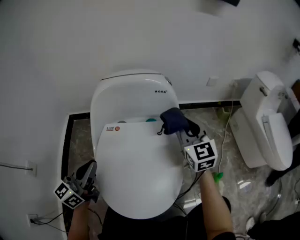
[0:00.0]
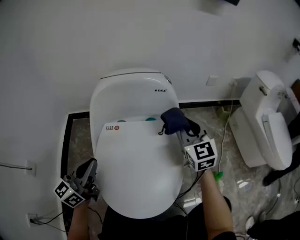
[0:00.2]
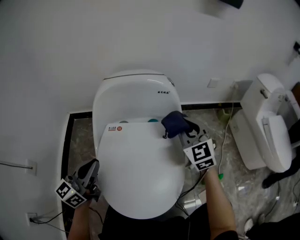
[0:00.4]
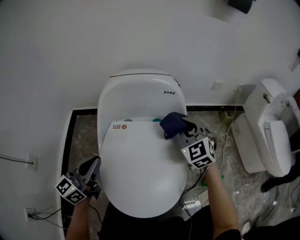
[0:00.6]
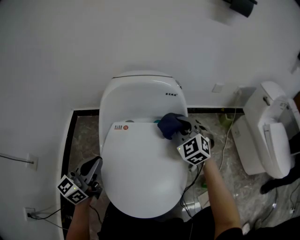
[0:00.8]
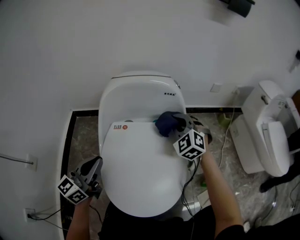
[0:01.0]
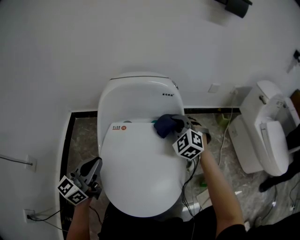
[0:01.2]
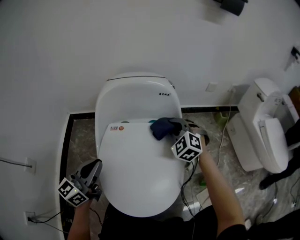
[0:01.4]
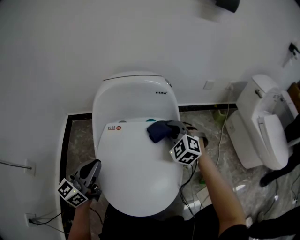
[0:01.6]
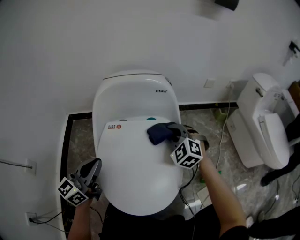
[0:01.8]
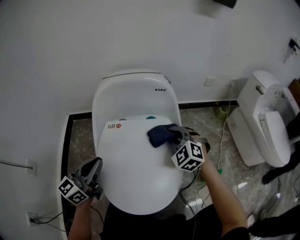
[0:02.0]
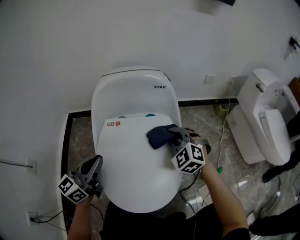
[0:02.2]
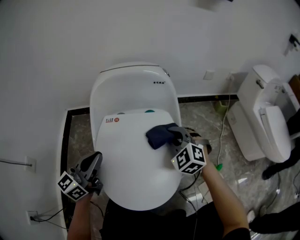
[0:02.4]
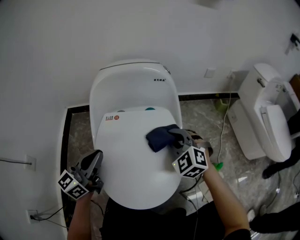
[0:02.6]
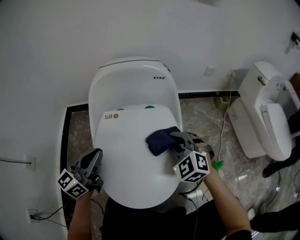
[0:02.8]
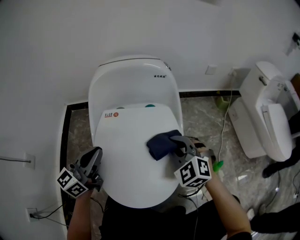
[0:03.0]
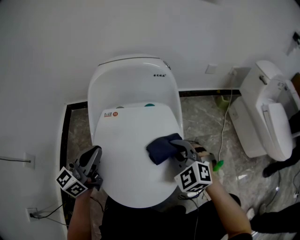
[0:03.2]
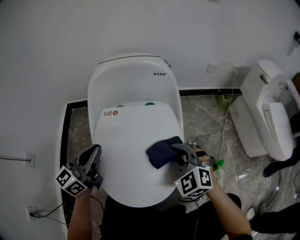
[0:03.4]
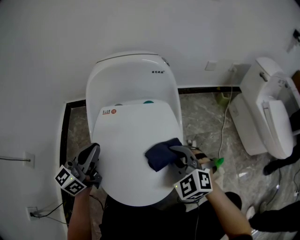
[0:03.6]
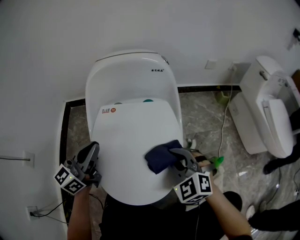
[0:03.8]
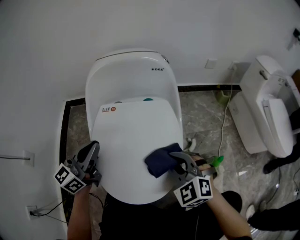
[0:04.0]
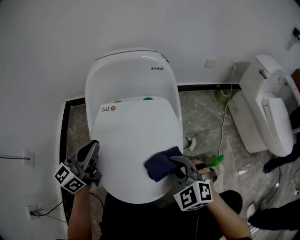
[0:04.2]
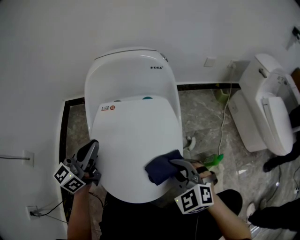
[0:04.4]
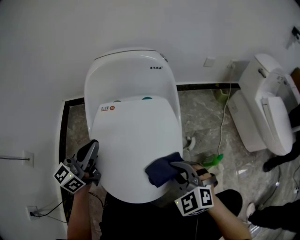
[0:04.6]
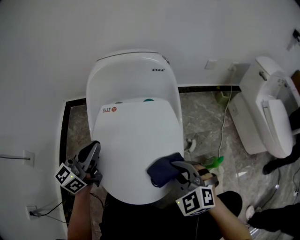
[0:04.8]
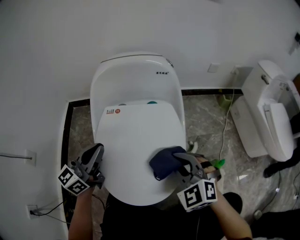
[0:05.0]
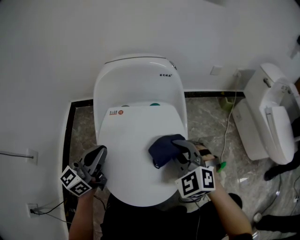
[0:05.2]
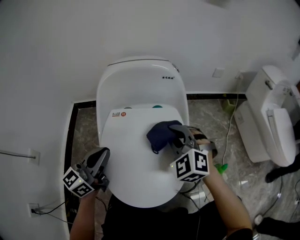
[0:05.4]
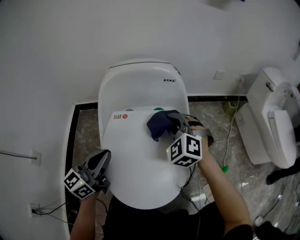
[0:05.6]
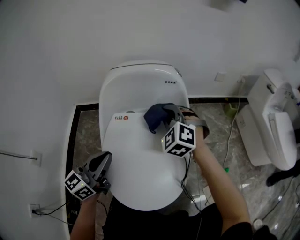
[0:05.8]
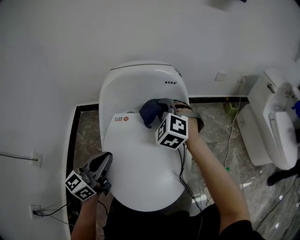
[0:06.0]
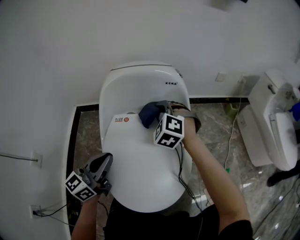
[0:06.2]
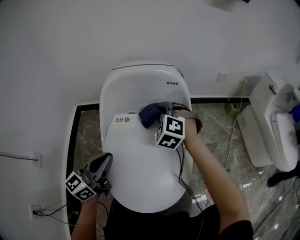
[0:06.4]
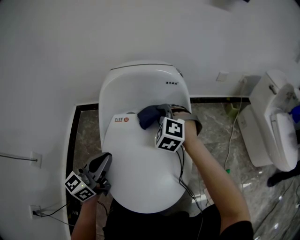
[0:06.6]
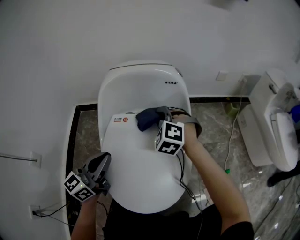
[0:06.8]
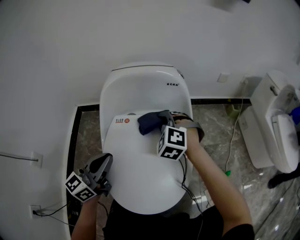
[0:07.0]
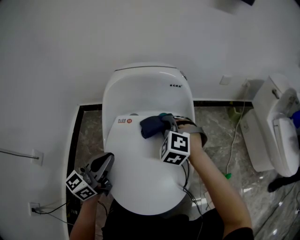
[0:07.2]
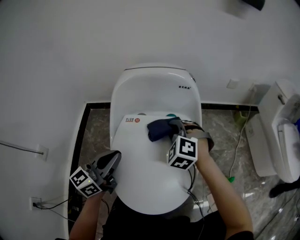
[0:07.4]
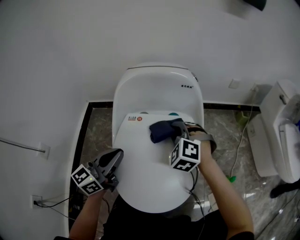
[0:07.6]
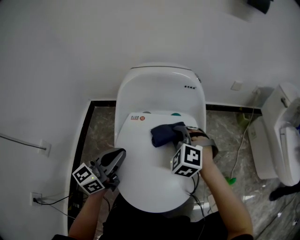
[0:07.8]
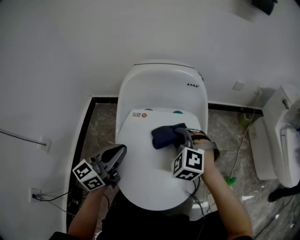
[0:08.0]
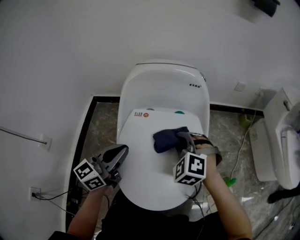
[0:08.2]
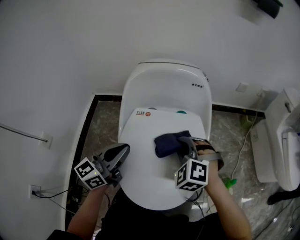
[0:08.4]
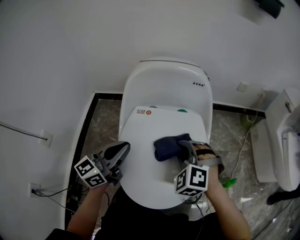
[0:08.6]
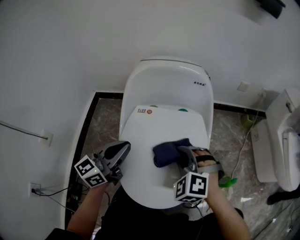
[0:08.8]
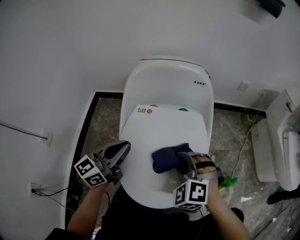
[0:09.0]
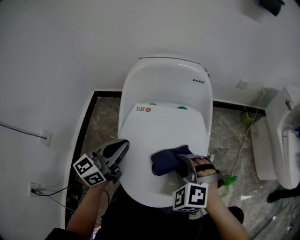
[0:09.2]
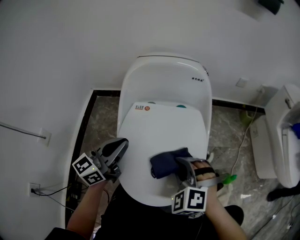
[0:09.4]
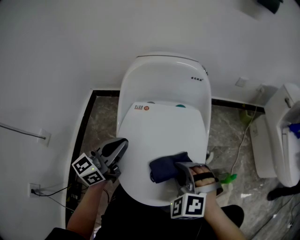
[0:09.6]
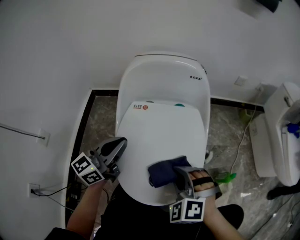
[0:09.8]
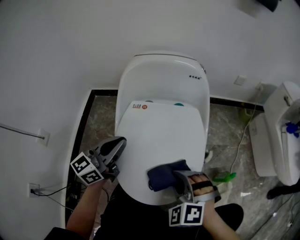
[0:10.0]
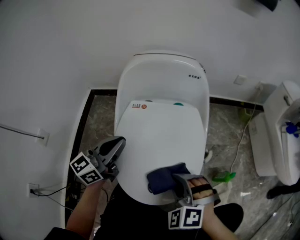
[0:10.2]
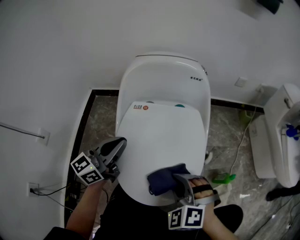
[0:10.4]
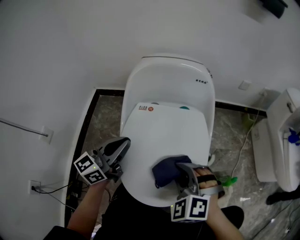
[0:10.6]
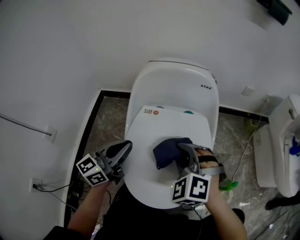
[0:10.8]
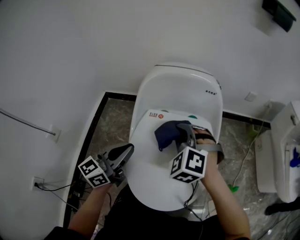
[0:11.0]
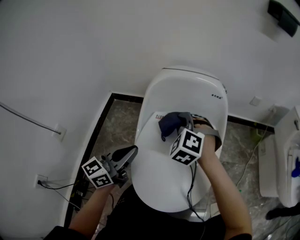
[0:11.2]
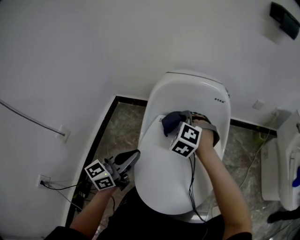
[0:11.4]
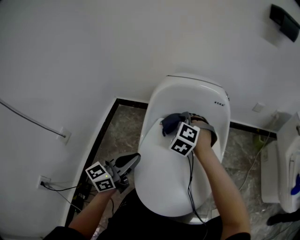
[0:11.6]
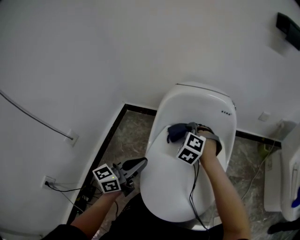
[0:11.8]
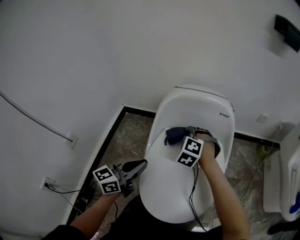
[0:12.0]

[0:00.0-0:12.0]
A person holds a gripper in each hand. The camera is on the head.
0:00.0 to 0:01.6: The right gripper travels downward by some 10 cm, and turns by roughly 50 degrees.
0:01.6 to 0:03.0: The right gripper travels backward by roughly 10 cm.
0:03.0 to 0:04.4: The right gripper shifts approximately 10 cm backward.
0:04.4 to 0:06.0: The right gripper is displaced forward by about 25 cm.
0:06.0 to 0:07.6: The right gripper goes roughly 5 cm backward.
0:07.6 to 0:09.0: The right gripper moves backward, about 15 cm.
0:09.0 to 0:10.4: The right gripper is displaced backward by about 10 cm.
0:10.4 to 0:12.0: The right gripper heads forward and to the left, covering some 30 cm.

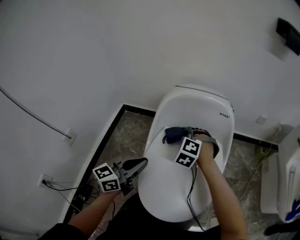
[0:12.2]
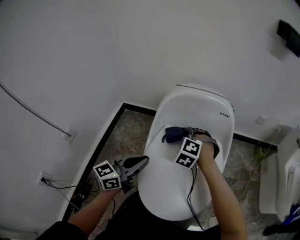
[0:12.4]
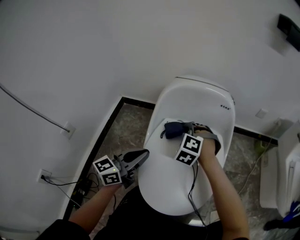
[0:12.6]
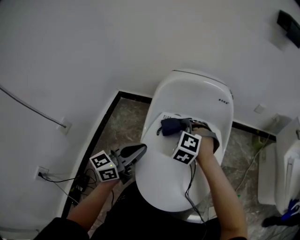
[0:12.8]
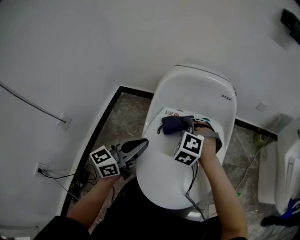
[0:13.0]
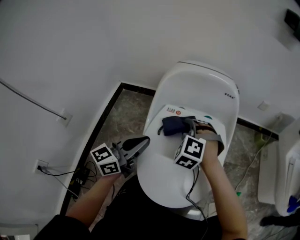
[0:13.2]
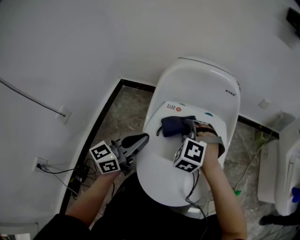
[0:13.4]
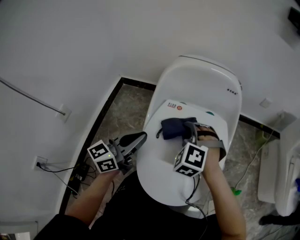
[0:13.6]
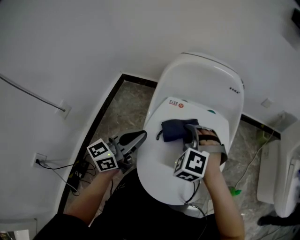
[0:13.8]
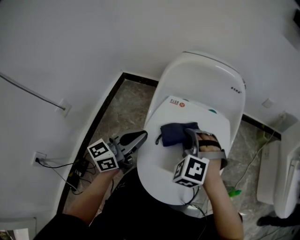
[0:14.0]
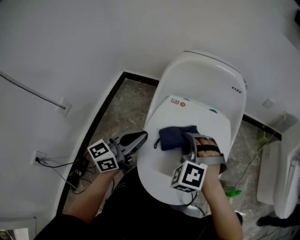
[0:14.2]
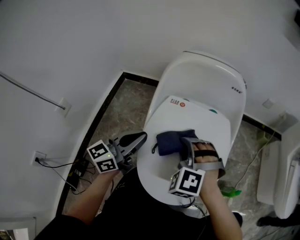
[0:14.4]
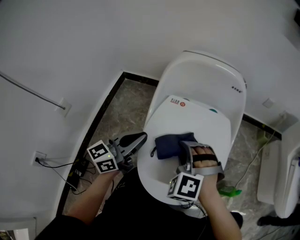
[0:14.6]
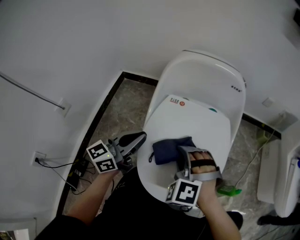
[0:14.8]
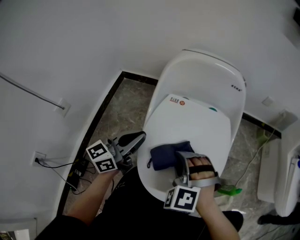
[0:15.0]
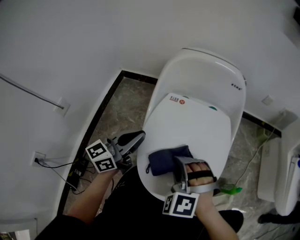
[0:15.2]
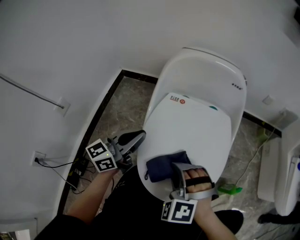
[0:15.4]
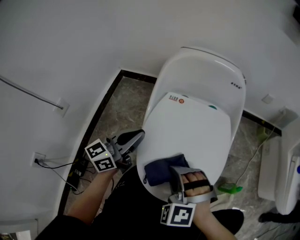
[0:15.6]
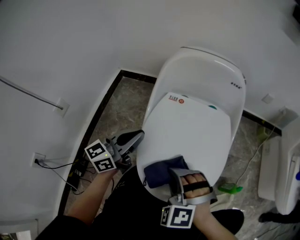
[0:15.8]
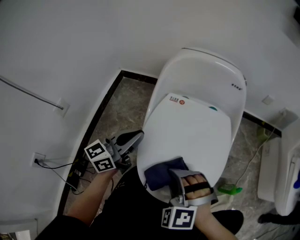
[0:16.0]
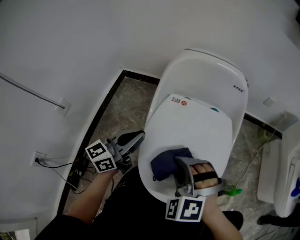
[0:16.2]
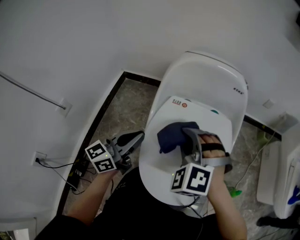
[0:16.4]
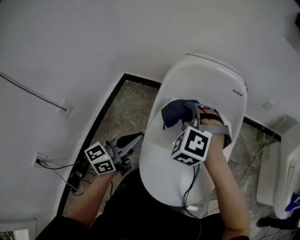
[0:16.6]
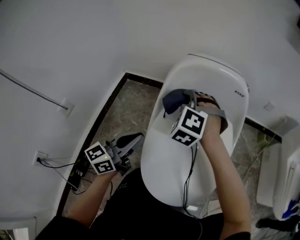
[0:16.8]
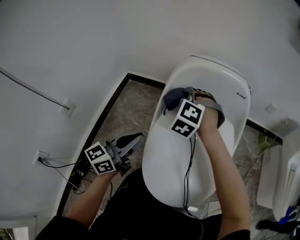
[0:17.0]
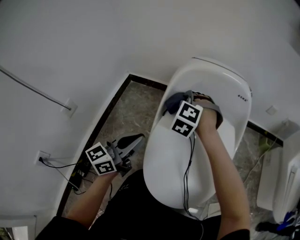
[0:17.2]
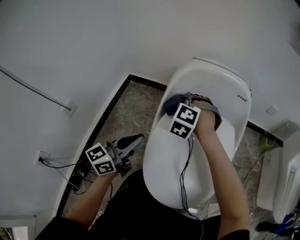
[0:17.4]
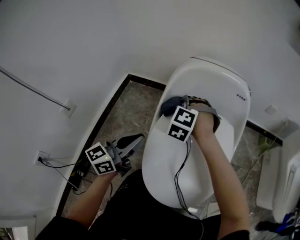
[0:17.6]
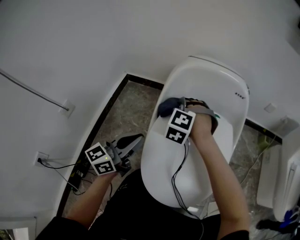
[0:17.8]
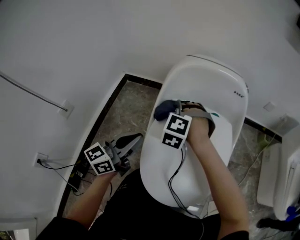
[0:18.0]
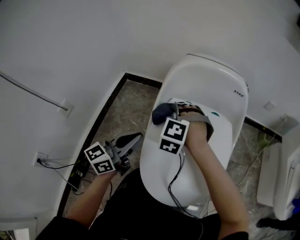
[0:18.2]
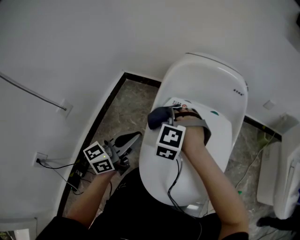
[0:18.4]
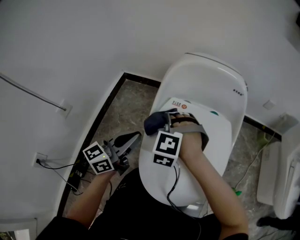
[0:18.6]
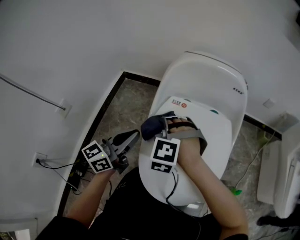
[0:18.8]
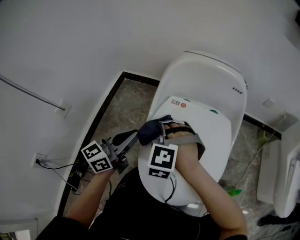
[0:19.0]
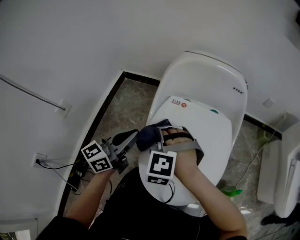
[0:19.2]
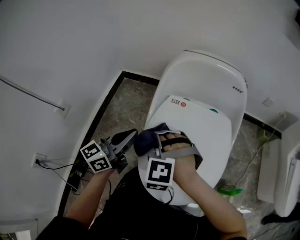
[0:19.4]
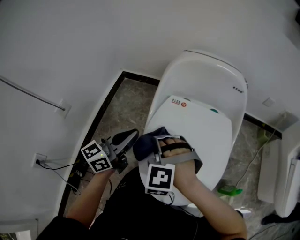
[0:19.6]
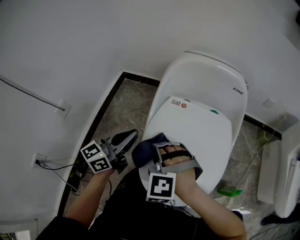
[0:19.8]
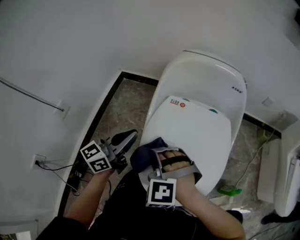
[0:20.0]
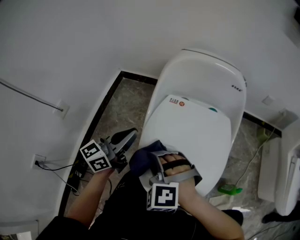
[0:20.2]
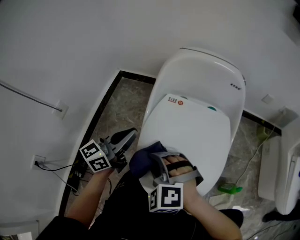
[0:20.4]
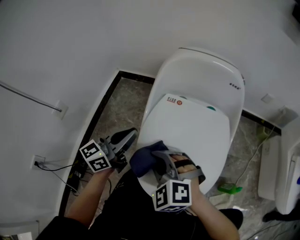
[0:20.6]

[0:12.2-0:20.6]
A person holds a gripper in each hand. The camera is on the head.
0:12.2 to 0:13.6: The right gripper shifts approximately 10 cm backward.
0:13.6 to 0:15.0: The right gripper travels backward by approximately 10 cm.
0:15.0 to 0:16.4: The right gripper heads forward and upward, covering some 10 cm.
0:16.4 to 0:17.8: The right gripper shifts some 15 cm forward, downward and to the left.
0:17.8 to 0:19.2: The right gripper heads backward, covering roughly 15 cm.
0:19.2 to 0:20.6: The right gripper heads backward, covering some 10 cm, and changes its angle by about 30 degrees.

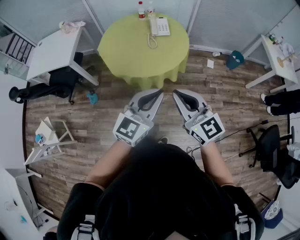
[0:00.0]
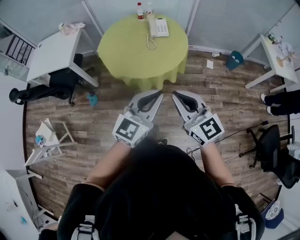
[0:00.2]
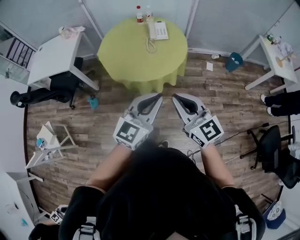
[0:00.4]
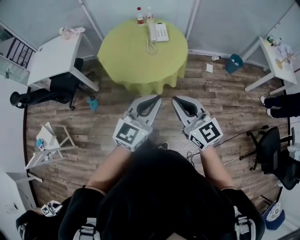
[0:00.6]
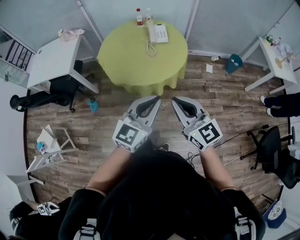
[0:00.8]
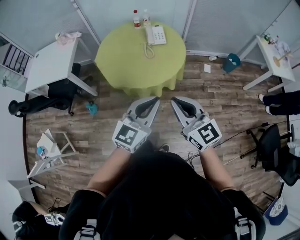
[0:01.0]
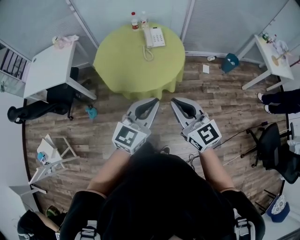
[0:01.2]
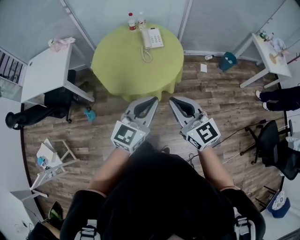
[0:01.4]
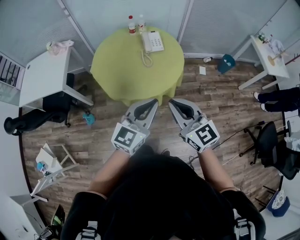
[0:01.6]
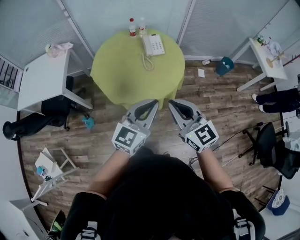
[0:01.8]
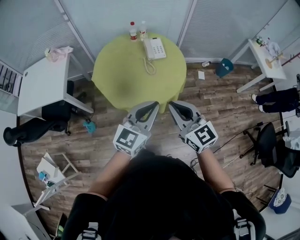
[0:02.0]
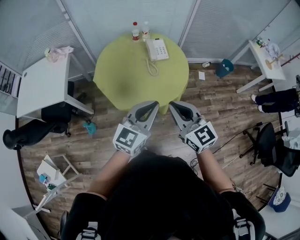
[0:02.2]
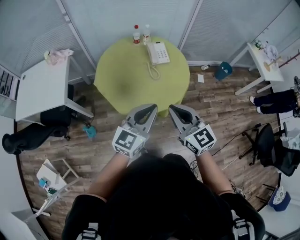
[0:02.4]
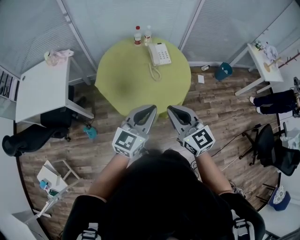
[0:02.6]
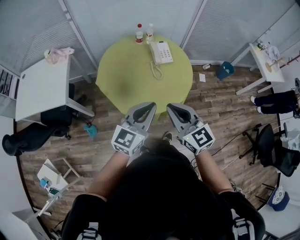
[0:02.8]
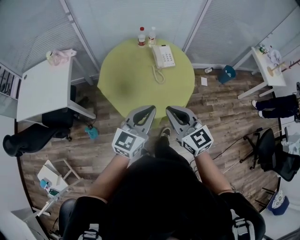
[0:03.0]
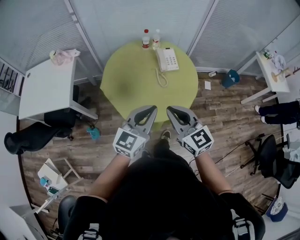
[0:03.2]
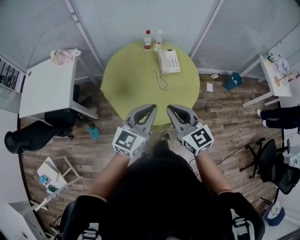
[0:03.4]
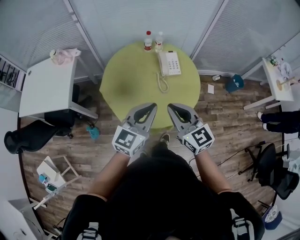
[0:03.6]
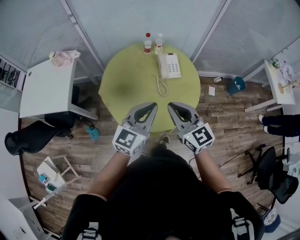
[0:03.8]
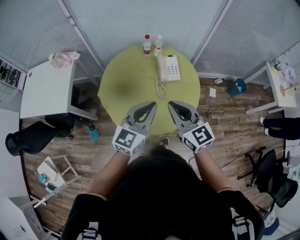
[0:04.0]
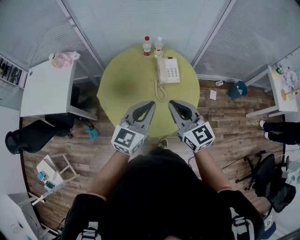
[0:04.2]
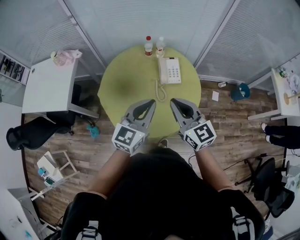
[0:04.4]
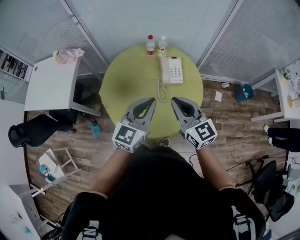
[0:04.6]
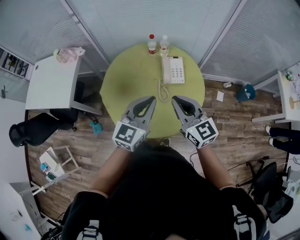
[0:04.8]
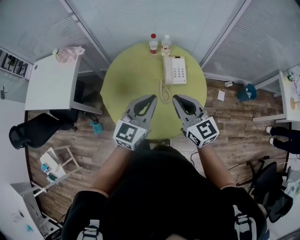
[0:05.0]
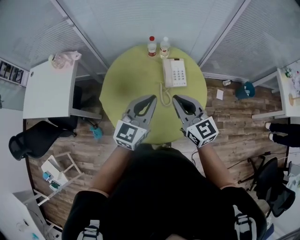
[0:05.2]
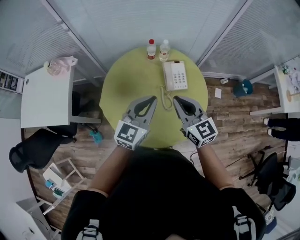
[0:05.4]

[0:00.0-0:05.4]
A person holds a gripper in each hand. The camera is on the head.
0:00.0 to 0:01.4: The two grippers go some 10 cm forward.
0:01.4 to 0:02.8: Both grippers move to the left and forward, about 20 cm.
0:02.8 to 0:04.0: Both grippers travel together forward, some 15 cm.
0:04.0 to 0:05.4: Both grippers move forward, about 15 cm.
